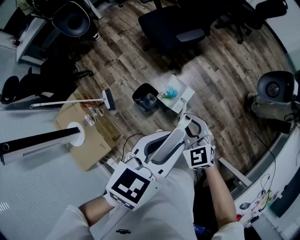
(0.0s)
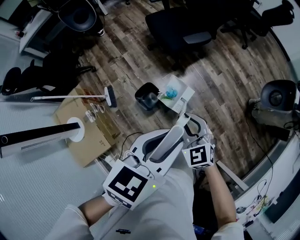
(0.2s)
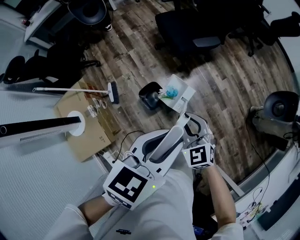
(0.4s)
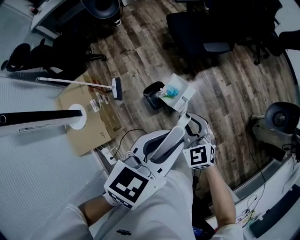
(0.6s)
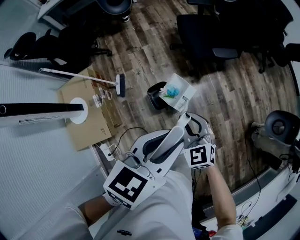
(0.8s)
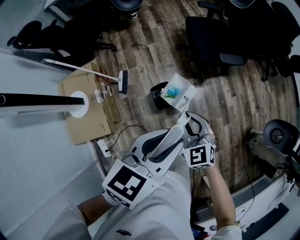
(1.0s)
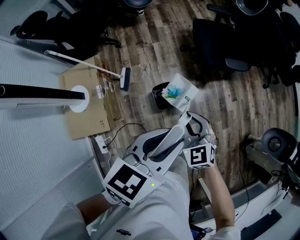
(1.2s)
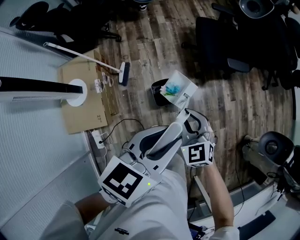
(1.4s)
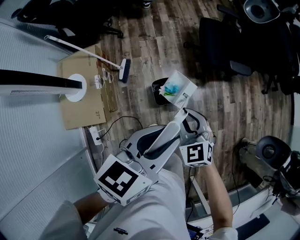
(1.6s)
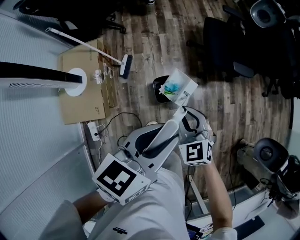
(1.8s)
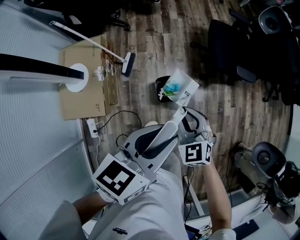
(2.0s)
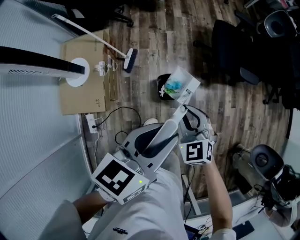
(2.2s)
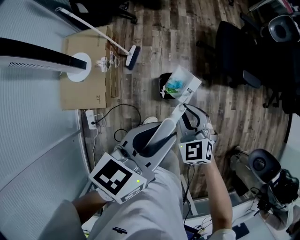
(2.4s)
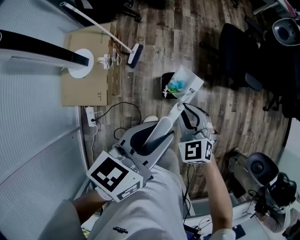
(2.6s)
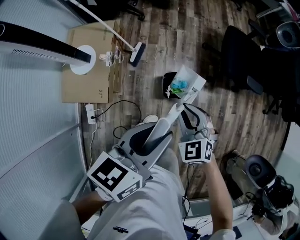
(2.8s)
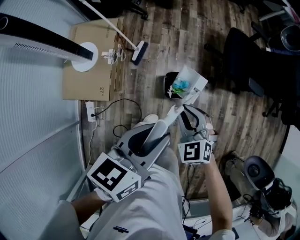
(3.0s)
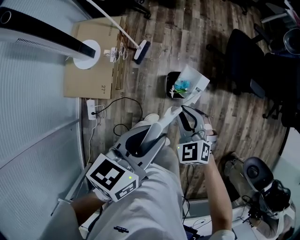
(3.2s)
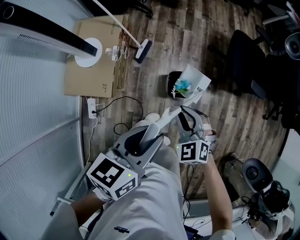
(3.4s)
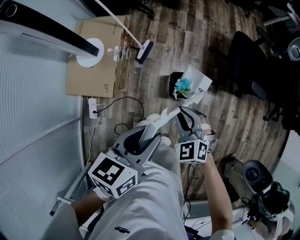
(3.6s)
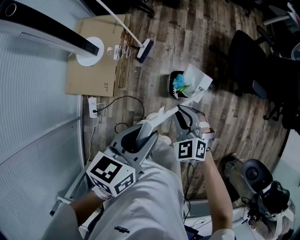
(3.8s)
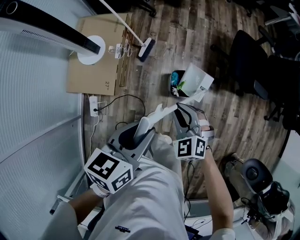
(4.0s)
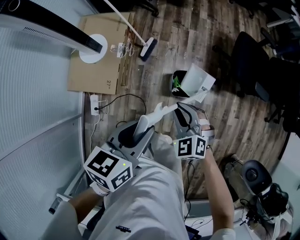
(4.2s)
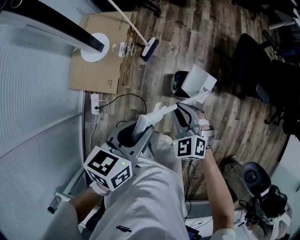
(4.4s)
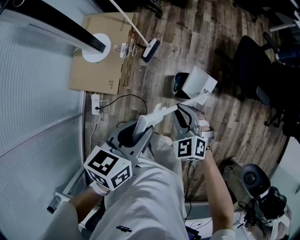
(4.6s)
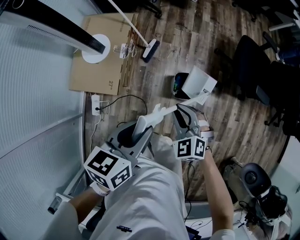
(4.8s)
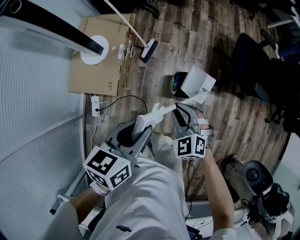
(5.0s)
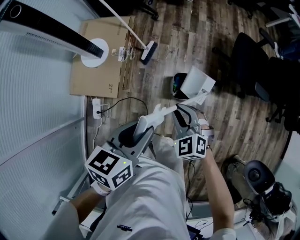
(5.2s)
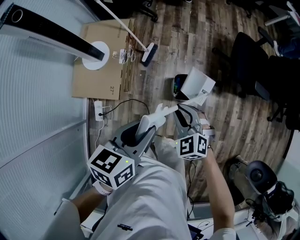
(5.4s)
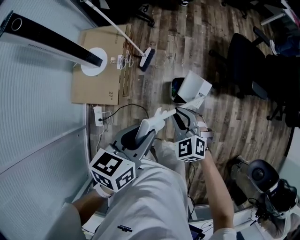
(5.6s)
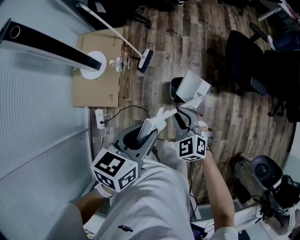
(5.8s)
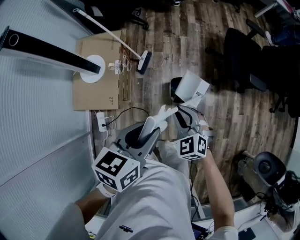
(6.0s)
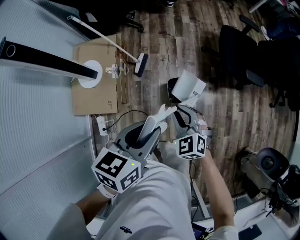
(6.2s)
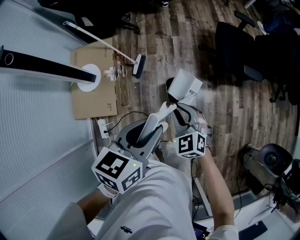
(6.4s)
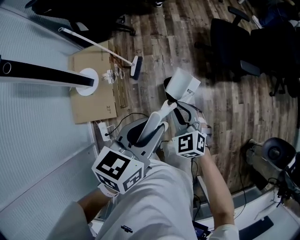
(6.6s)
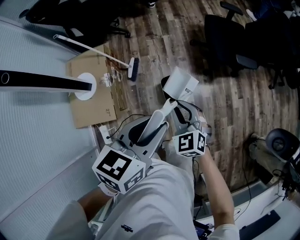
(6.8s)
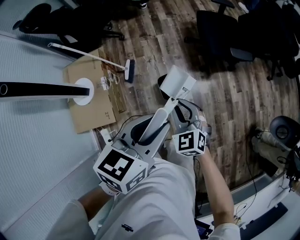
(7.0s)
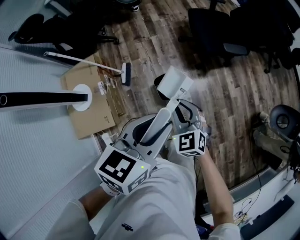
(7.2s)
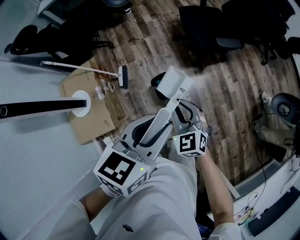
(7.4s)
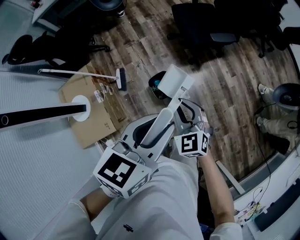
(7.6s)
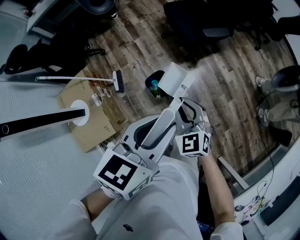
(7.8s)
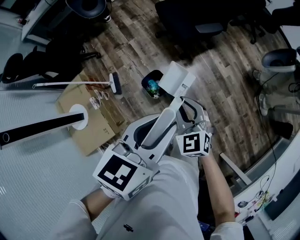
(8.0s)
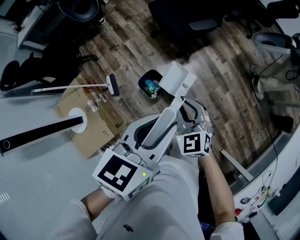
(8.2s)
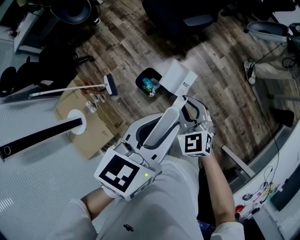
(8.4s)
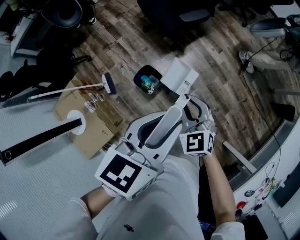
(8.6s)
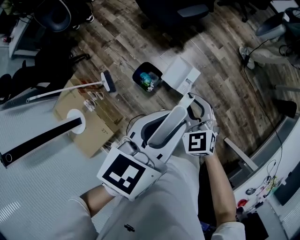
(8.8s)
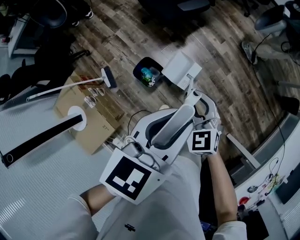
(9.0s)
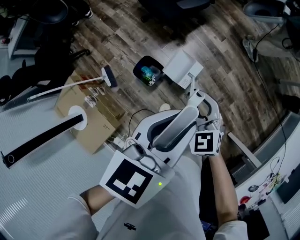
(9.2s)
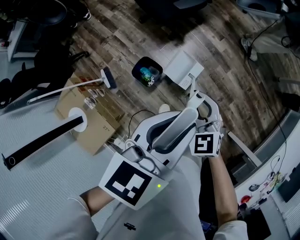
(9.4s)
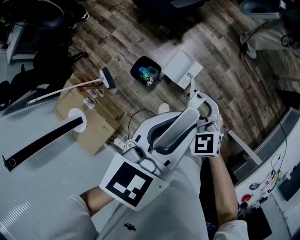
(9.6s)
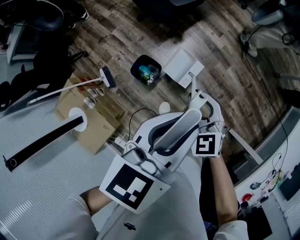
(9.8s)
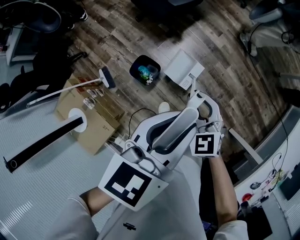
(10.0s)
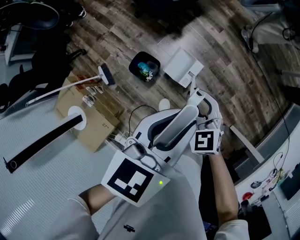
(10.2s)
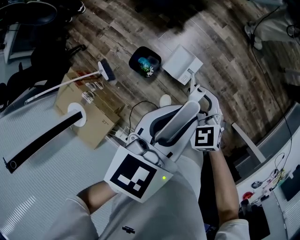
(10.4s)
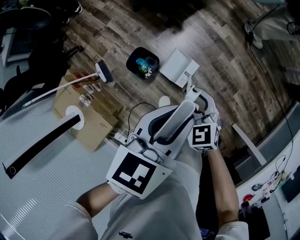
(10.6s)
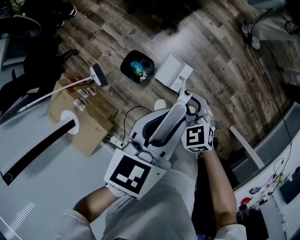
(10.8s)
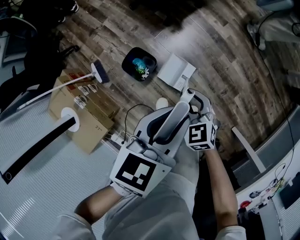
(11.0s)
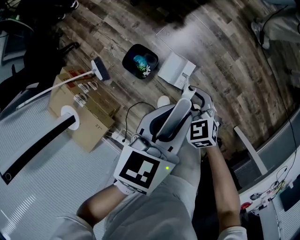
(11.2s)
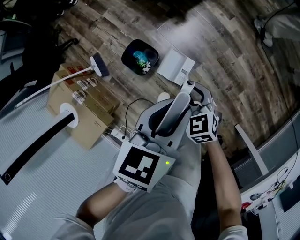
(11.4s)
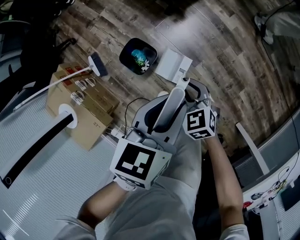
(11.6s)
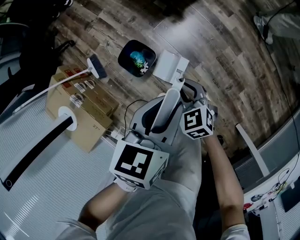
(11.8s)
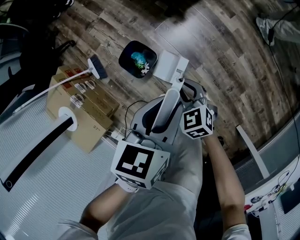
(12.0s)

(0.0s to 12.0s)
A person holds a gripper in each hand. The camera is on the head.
0.0s - 1.6s: The right gripper shifts by approximately 20 cm, and swivels about 30 degrees. The left gripper ends up about 20 cm from where it was, and rotates some 30 degrees.
1.6s - 3.0s: Both grippers travel together to the left, roughly 10 cm. The left gripper changes its angle by about 20 degrees.
3.0s - 4.4s: The right gripper is displaced to the left by some 5 cm. The left gripper travels to the left and downward by about 10 cm.
4.4s - 6.0s: The left gripper ends up roughly 5 cm from where it was.
6.0s - 7.6s: The right gripper moves approximately 15 cm, and changes its angle by roughly 40 degrees; the left gripper shifts by roughly 20 cm, and swivels some 30 degrees.
7.6s - 9.0s: The grippers both shift to the right by approximately 15 cm. The right gripper changes its angle by roughly 20 degrees.
9.0s - 10.4s: Both grippers move downward, about 5 cm.
10.4s - 12.0s: The grippers both shift downward by roughly 20 cm.

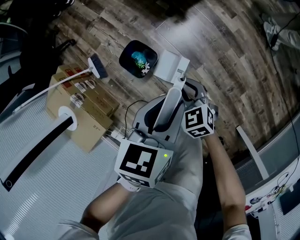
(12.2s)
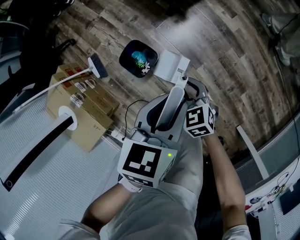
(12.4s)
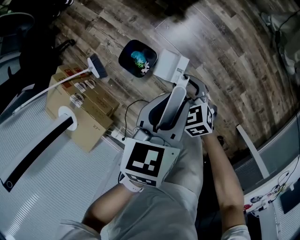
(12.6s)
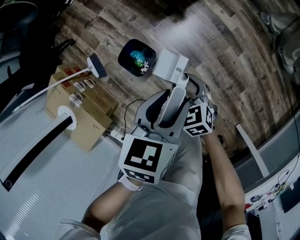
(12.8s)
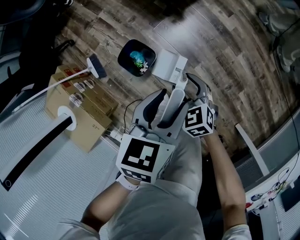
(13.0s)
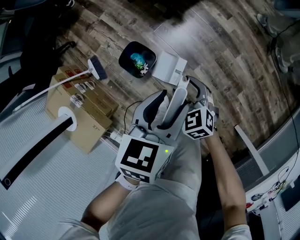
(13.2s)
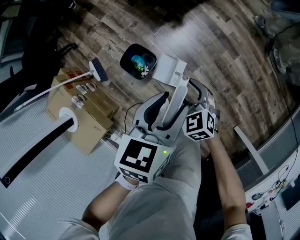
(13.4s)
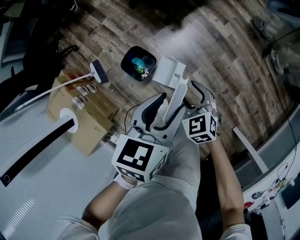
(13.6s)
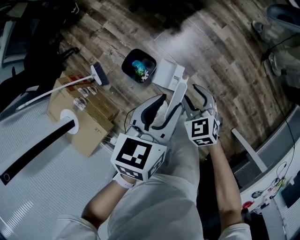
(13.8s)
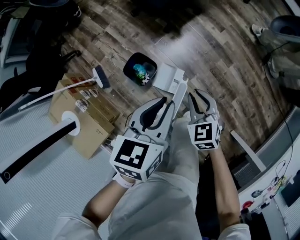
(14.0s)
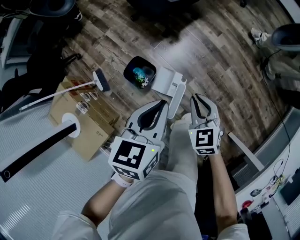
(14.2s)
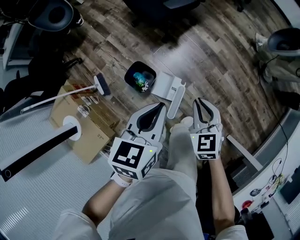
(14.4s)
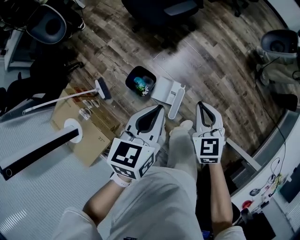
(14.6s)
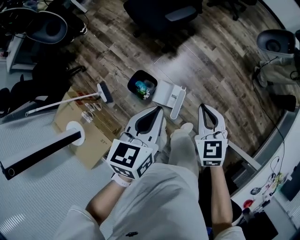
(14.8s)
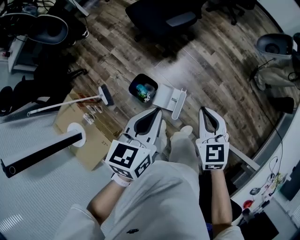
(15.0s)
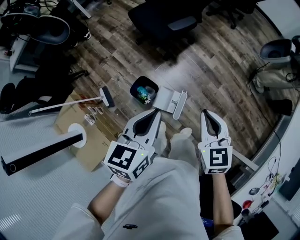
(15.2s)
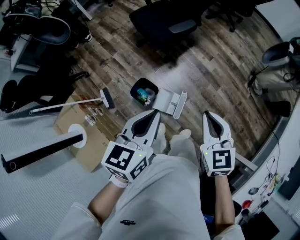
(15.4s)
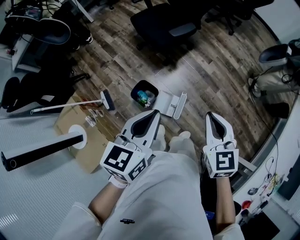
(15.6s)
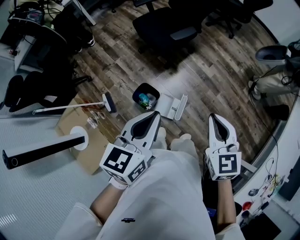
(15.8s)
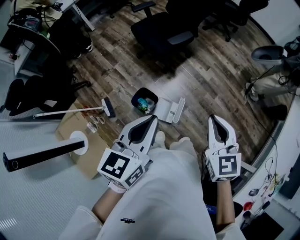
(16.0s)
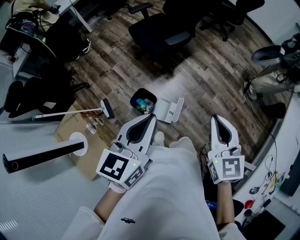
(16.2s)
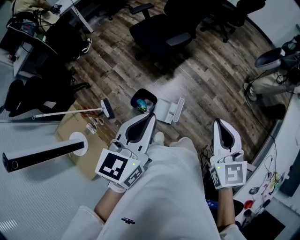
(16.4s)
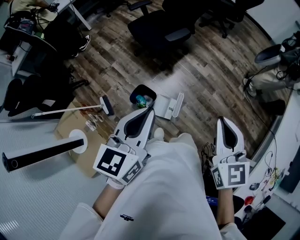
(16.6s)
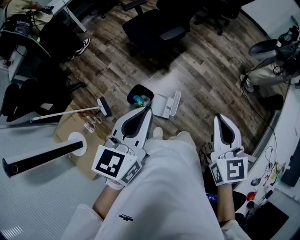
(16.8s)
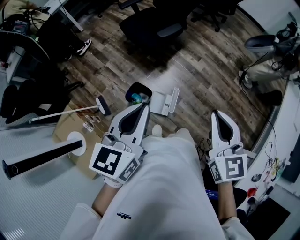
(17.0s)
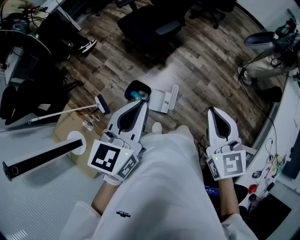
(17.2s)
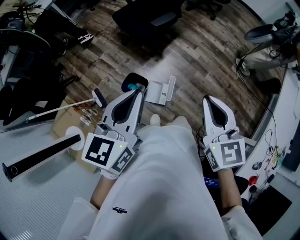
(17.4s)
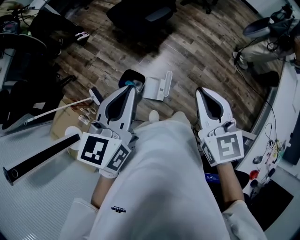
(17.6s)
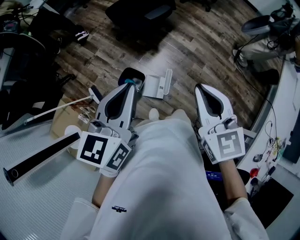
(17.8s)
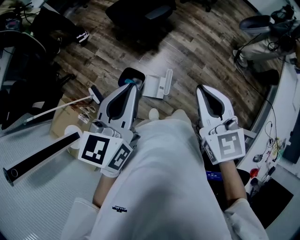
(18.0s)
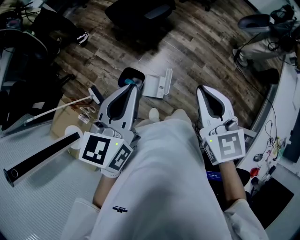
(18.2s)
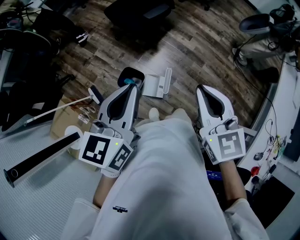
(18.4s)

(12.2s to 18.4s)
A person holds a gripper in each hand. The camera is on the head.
12.2s - 13.8s: Both grippers move upward, some 10 cm. The right gripper opens up.
13.8s - 15.4s: The right gripper heads upward, covering some 30 cm, changes its angle by approximately 20 degrees, and closes up; the left gripper is displaced upward by approximately 20 cm, and closes.
15.4s - 16.8s: The left gripper moves upward, about 10 cm; the right gripper travels upward and backward by approximately 10 cm.
16.8s - 18.4s: The grippers stay close to where they were, moving slightly.

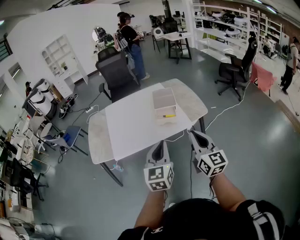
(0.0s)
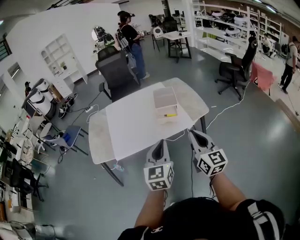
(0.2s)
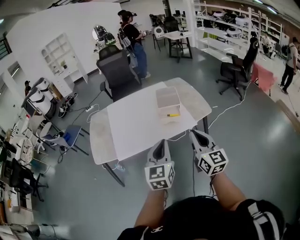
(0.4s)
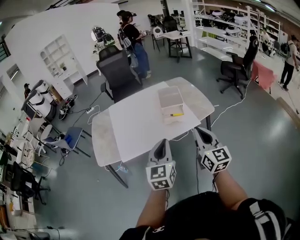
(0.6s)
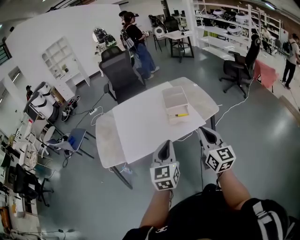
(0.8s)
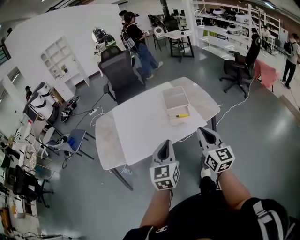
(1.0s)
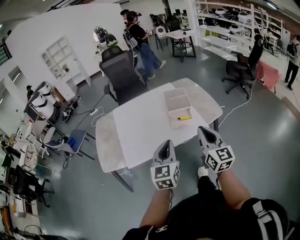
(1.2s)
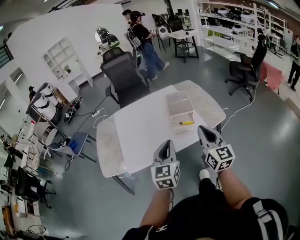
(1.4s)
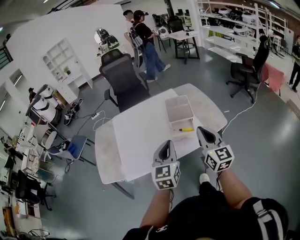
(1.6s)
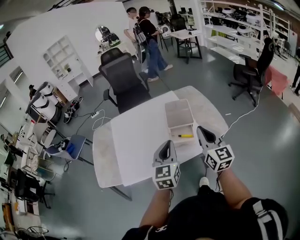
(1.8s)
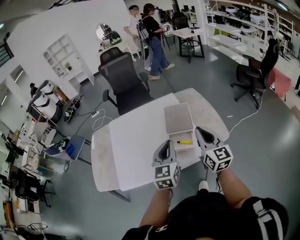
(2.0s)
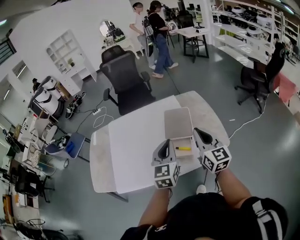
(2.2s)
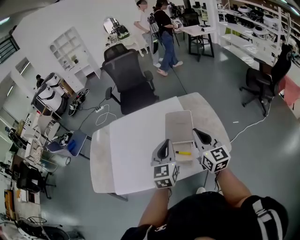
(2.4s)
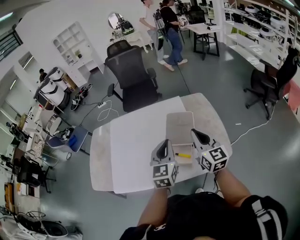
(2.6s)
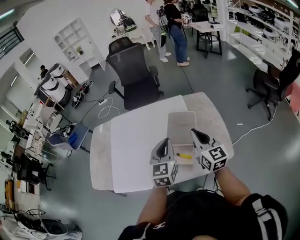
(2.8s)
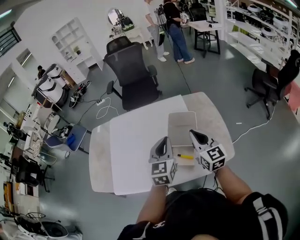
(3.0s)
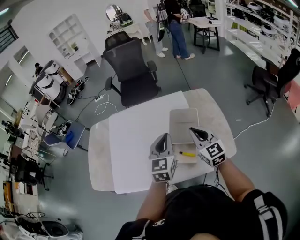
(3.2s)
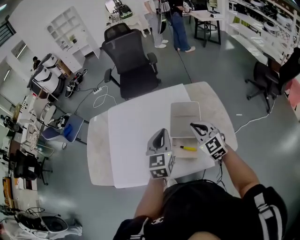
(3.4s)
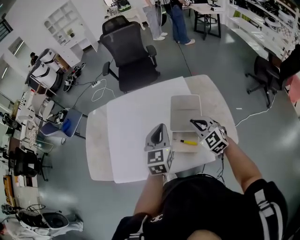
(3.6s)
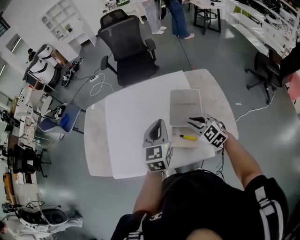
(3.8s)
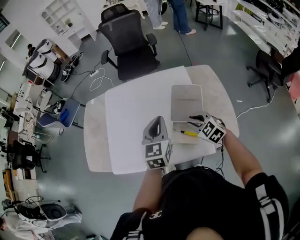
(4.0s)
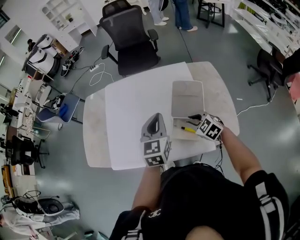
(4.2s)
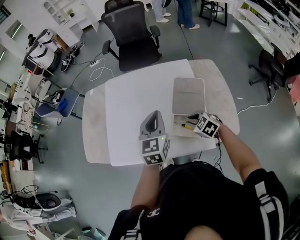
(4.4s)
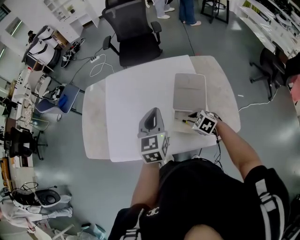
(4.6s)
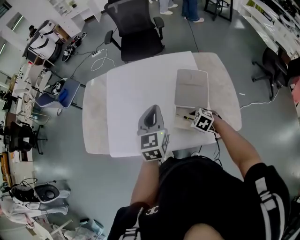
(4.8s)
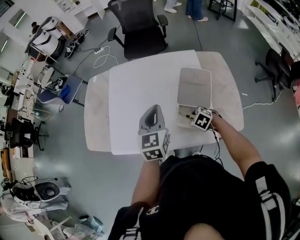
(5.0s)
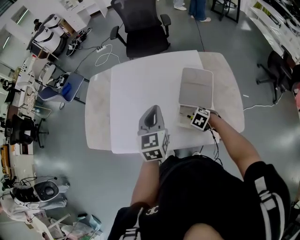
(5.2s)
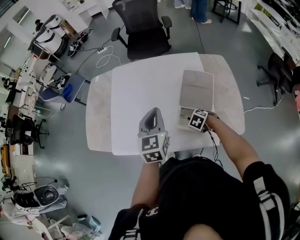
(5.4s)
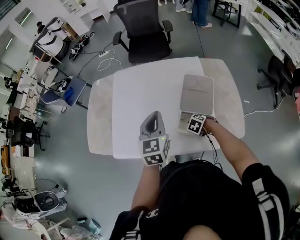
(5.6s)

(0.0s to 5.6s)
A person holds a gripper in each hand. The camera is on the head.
0.0s - 1.4s: The left gripper goes approximately 15 cm forward and to the left, while the right gripper is displaced forward by about 15 cm.
1.4s - 2.8s: The grippers both shift forward by roughly 30 cm.
2.8s - 4.2s: The left gripper shifts about 10 cm to the left; the right gripper goes approximately 20 cm downward and to the left, and tips its fingers downward by approximately 40 degrees.
4.2s - 5.6s: The left gripper moves about 5 cm. Meanwhile the right gripper travels downward by approximately 15 cm, and tips its fingers downward by about 30 degrees.
